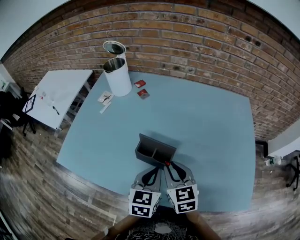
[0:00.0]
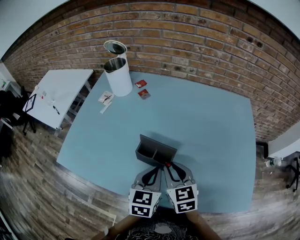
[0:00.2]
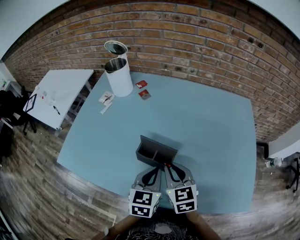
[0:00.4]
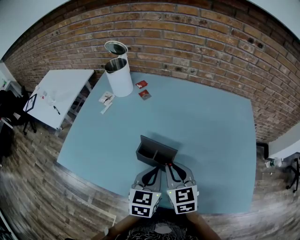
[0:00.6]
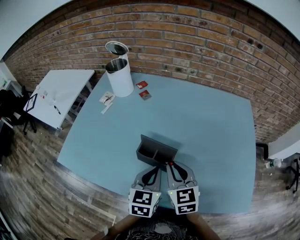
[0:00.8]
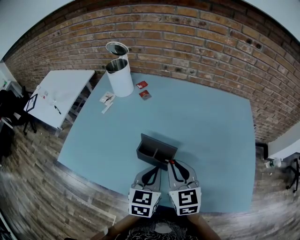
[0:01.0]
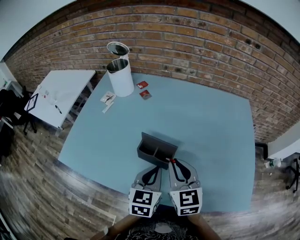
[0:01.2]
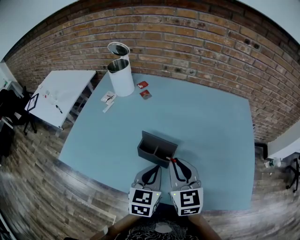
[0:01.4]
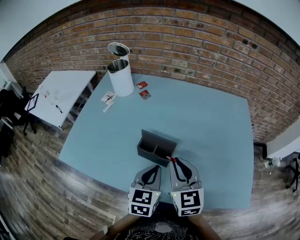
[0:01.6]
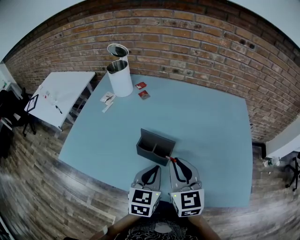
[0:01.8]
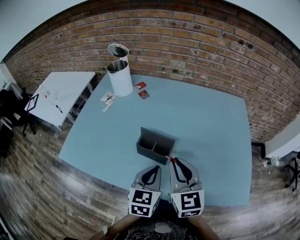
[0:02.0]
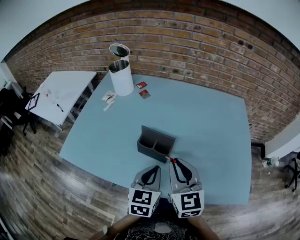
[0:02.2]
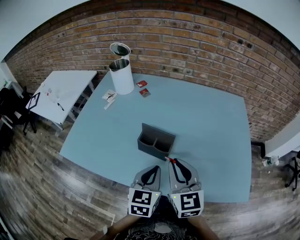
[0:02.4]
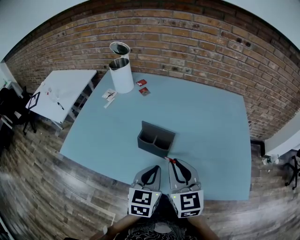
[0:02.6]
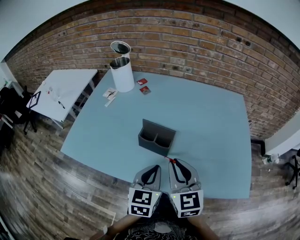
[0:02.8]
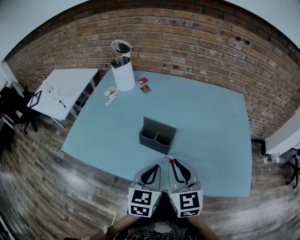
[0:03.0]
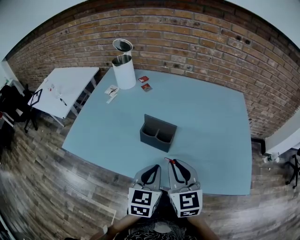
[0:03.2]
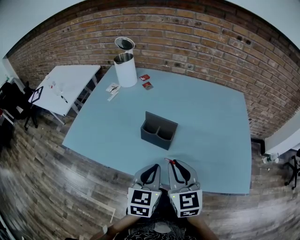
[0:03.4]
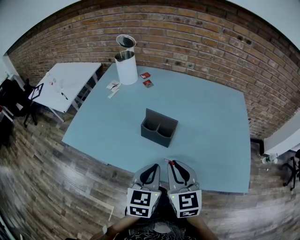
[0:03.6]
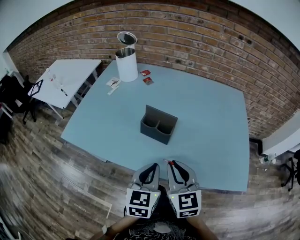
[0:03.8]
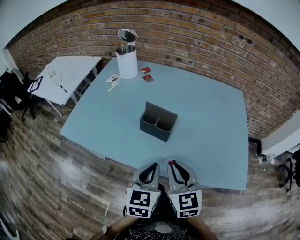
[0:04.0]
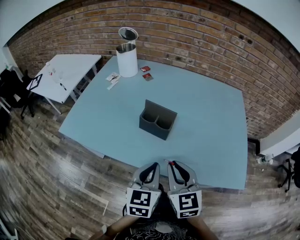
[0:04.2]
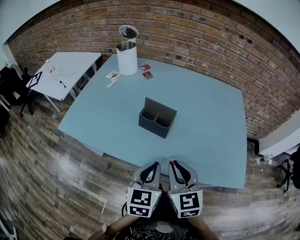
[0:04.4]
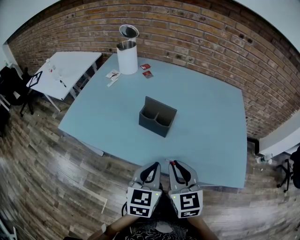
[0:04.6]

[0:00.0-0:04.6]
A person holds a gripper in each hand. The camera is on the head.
0:00.0 to 0:01.6: The right gripper shifts approximately 5 cm upward.
0:01.6 to 0:03.0: The two grippers go some 5 cm backward.
0:03.0 to 0:04.6: The grippers both shift backward by approximately 10 cm.

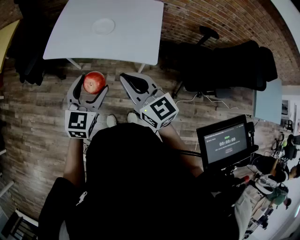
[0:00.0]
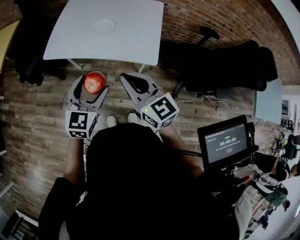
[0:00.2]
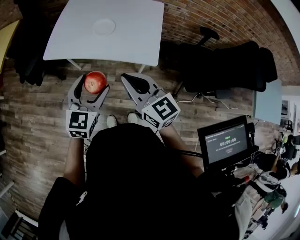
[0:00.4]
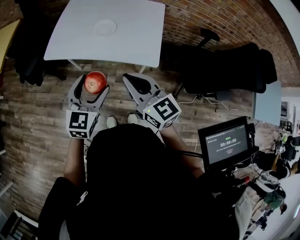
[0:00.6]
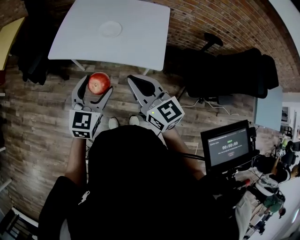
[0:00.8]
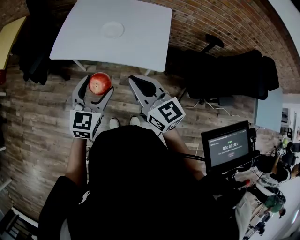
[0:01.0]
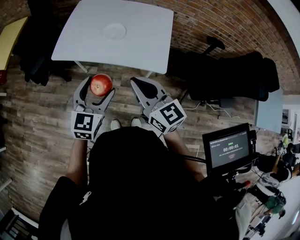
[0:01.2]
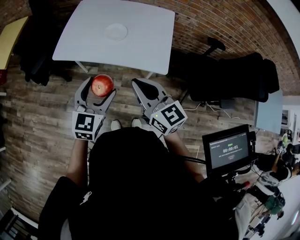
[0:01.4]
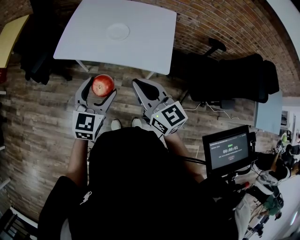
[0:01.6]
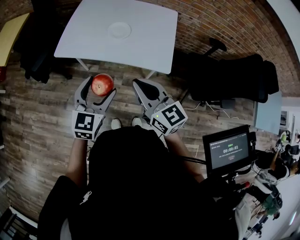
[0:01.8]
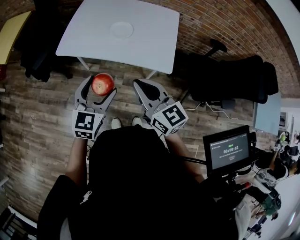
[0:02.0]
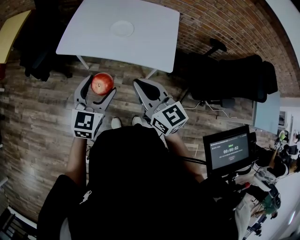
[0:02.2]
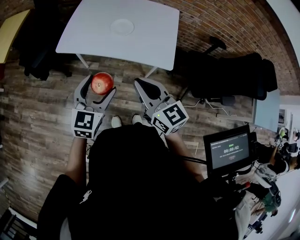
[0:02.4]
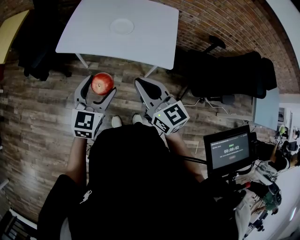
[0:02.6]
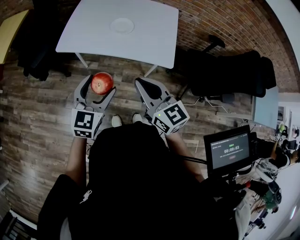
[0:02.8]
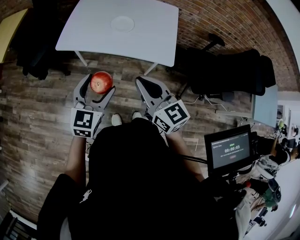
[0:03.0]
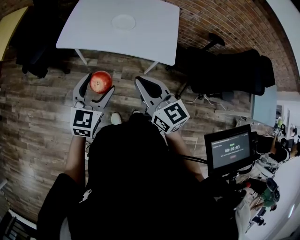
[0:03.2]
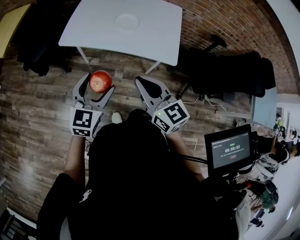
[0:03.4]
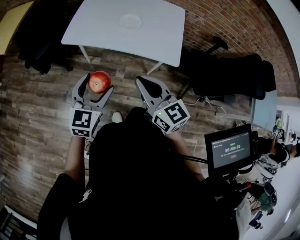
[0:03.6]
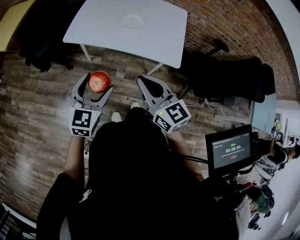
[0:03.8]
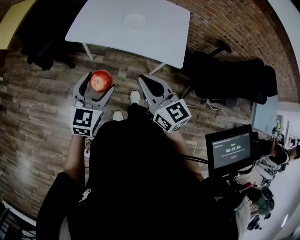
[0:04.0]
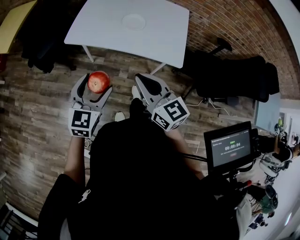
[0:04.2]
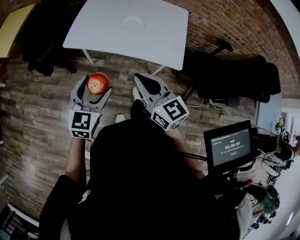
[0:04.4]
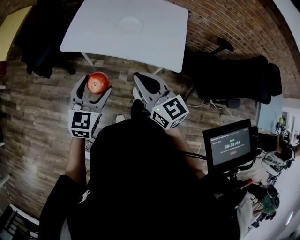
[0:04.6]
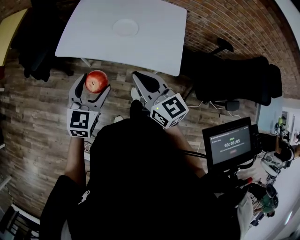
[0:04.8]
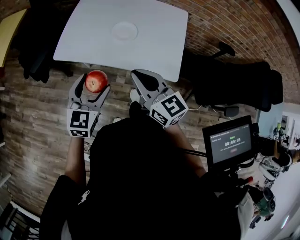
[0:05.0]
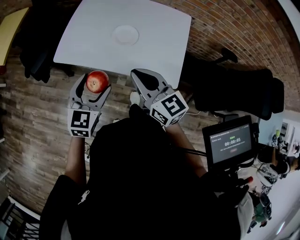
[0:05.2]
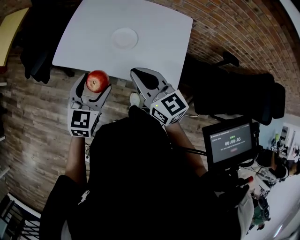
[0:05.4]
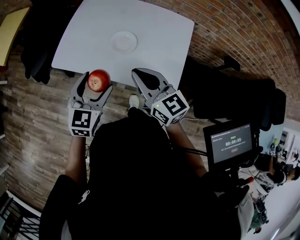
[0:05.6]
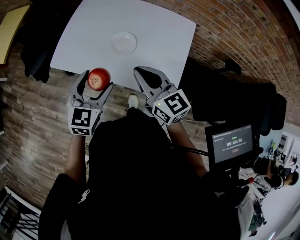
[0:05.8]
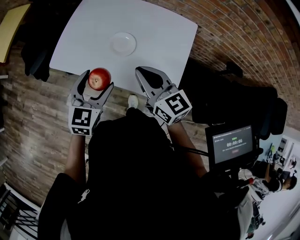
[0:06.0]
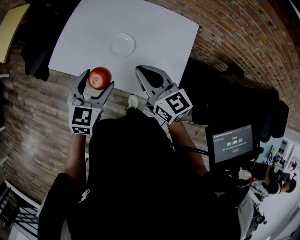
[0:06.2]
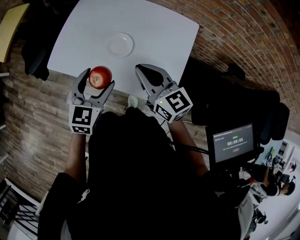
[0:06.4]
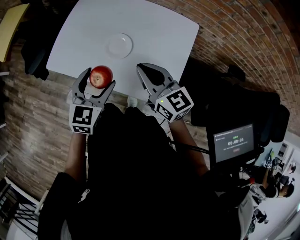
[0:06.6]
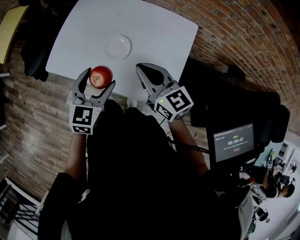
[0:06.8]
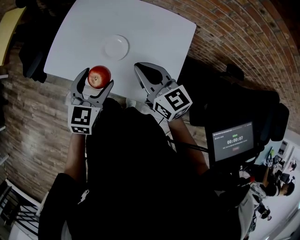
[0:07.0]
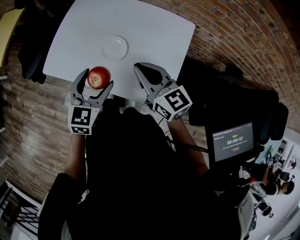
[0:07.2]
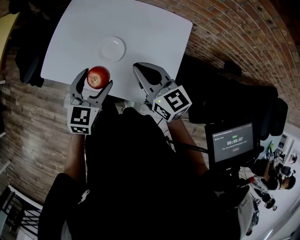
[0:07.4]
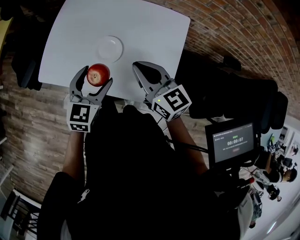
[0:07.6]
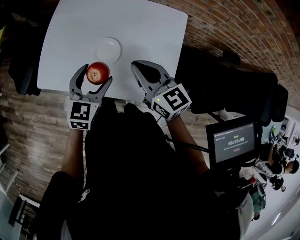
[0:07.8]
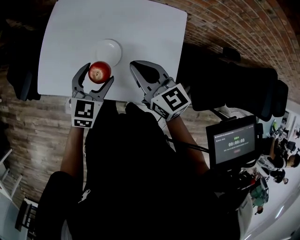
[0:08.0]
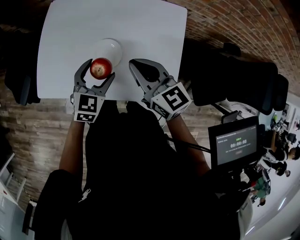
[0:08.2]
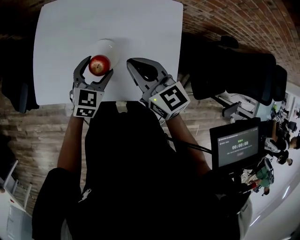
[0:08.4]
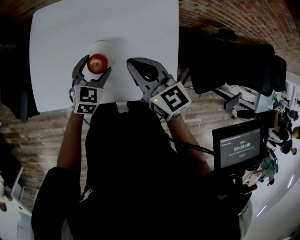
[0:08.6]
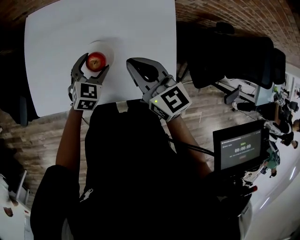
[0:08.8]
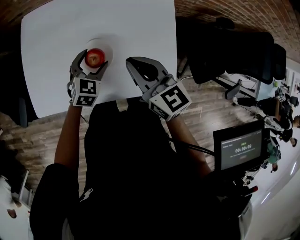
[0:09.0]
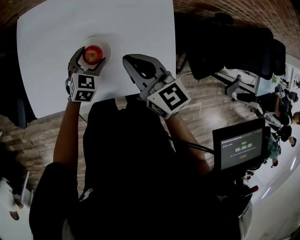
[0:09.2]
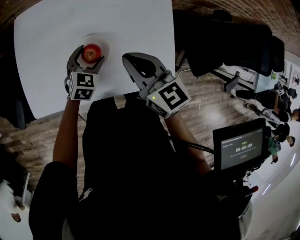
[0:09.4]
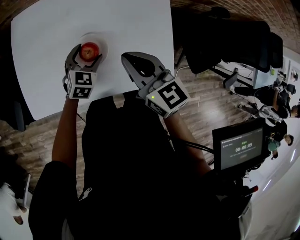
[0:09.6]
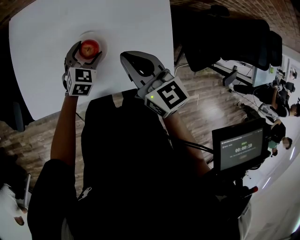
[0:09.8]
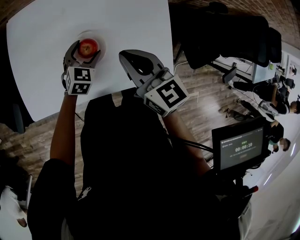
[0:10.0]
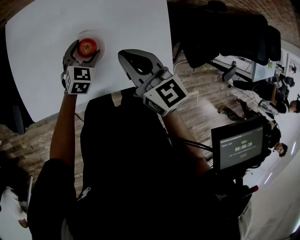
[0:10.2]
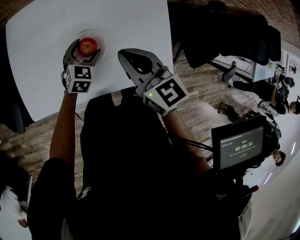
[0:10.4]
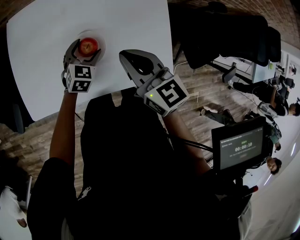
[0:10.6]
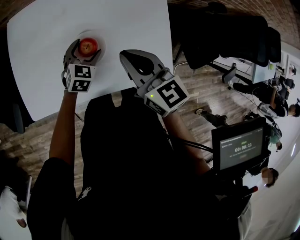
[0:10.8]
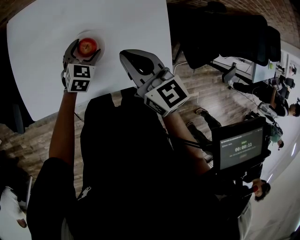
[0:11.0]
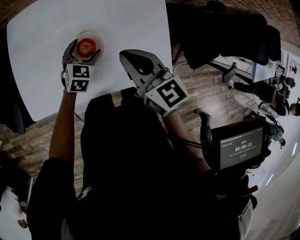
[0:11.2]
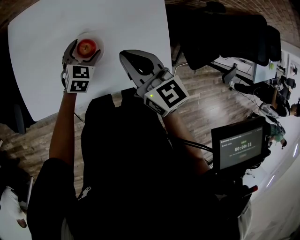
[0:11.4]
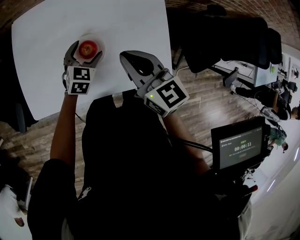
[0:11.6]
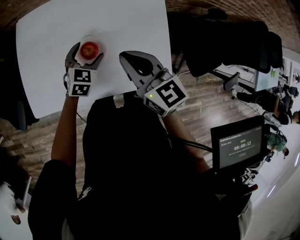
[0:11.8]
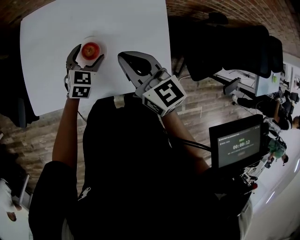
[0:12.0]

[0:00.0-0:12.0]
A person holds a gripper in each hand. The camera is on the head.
0:00.0 to 0:01.6: The left gripper travels to the left by some 5 cm.
0:01.6 to 0:03.0: The right gripper shifts by some 5 cm. The left gripper shifts about 5 cm to the left.
0:03.0 to 0:04.4: The grippers make only small movements.
0:04.4 to 0:06.0: The two grippers go approximately 25 cm forward and to the right.
0:06.0 to 0:07.6: Both grippers move forward and to the right, roughly 10 cm.
0:07.6 to 0:09.0: The left gripper shifts some 20 cm downward and forward, and rotates approximately 30 degrees, while the right gripper heads forward, covering some 5 cm, and rotates about 20 degrees.
0:09.0 to 0:10.4: The grippers make only small movements.
0:10.4 to 0:12.0: The left gripper goes roughly 5 cm upward.

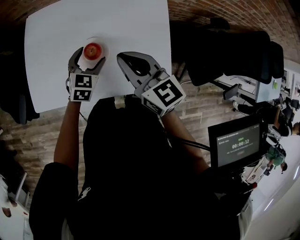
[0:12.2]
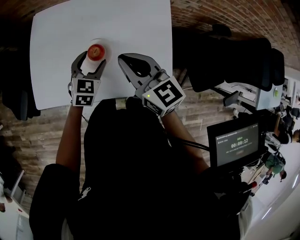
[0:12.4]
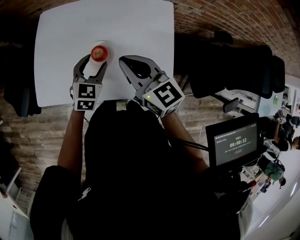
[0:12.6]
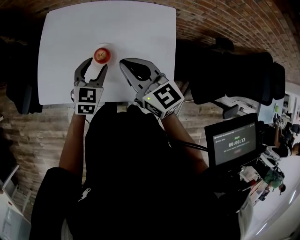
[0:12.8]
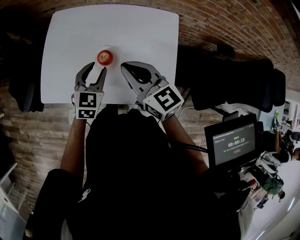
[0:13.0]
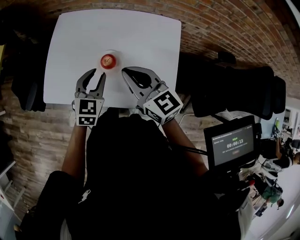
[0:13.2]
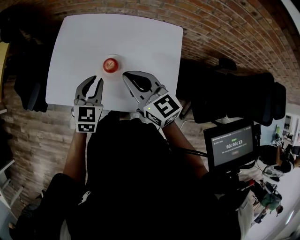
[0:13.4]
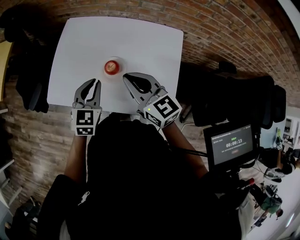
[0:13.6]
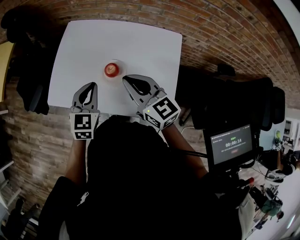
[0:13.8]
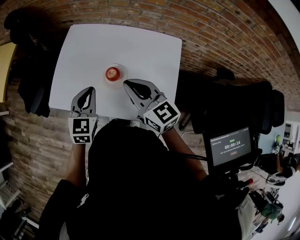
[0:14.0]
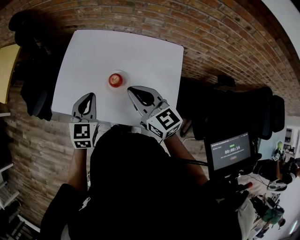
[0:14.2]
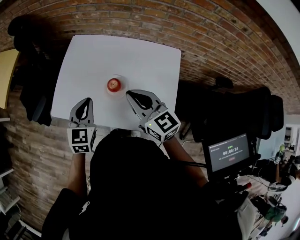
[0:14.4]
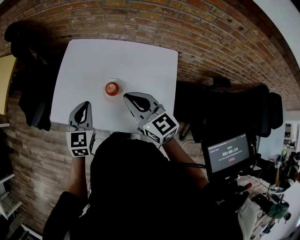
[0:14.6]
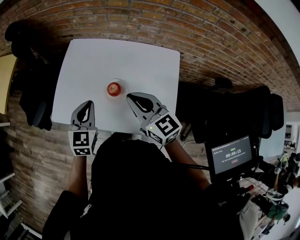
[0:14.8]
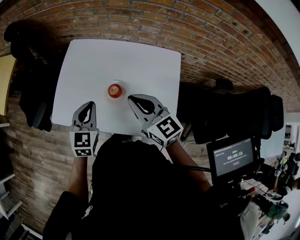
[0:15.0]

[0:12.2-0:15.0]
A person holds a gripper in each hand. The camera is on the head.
0:12.2 to 0:13.6: The left gripper is displaced upward, to the left and backward by about 15 cm, turns by roughly 20 degrees, and closes. Meanwhile the right gripper ends up some 5 cm from where it was.
0:13.6 to 0:15.0: The grippers move only a little.

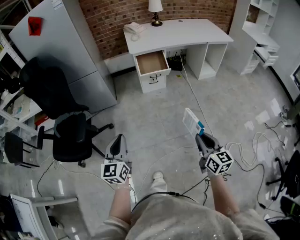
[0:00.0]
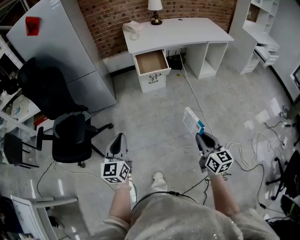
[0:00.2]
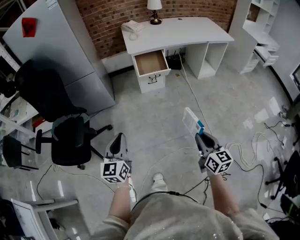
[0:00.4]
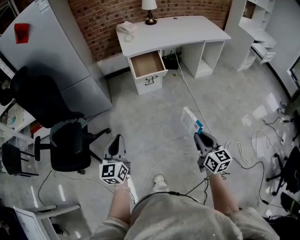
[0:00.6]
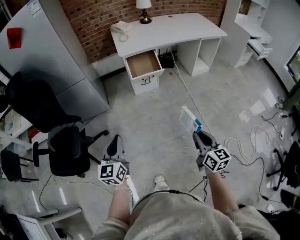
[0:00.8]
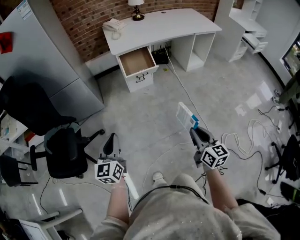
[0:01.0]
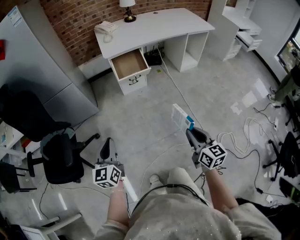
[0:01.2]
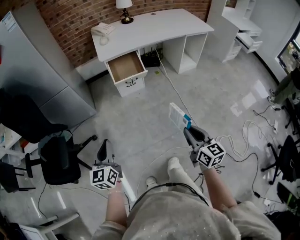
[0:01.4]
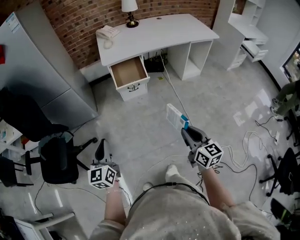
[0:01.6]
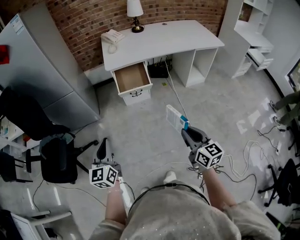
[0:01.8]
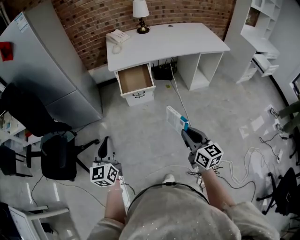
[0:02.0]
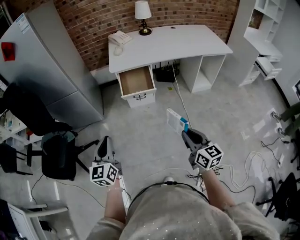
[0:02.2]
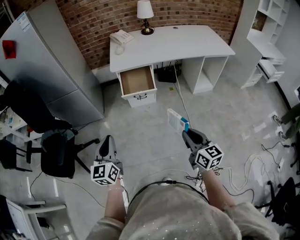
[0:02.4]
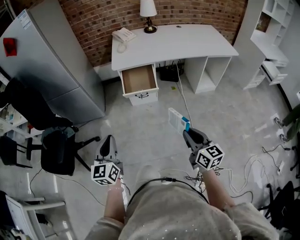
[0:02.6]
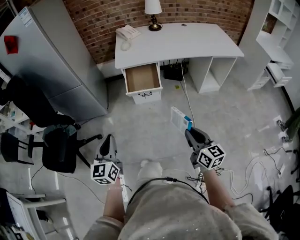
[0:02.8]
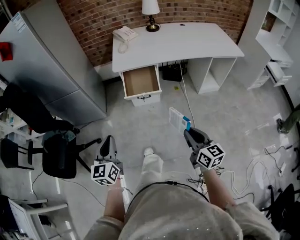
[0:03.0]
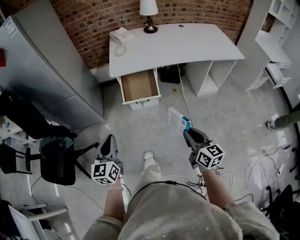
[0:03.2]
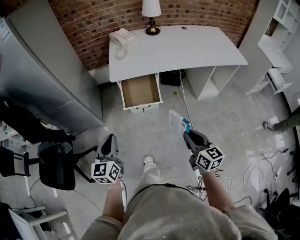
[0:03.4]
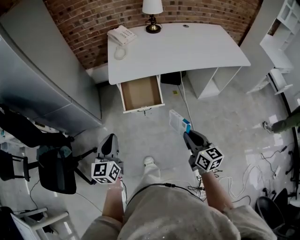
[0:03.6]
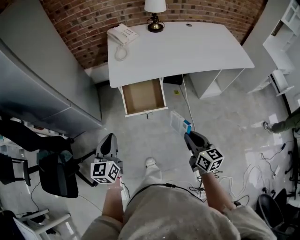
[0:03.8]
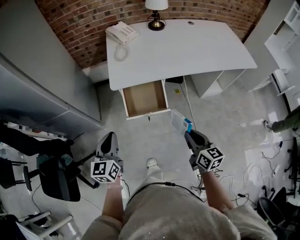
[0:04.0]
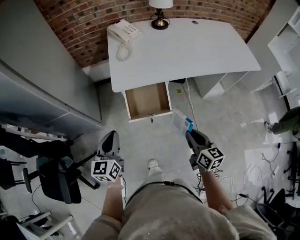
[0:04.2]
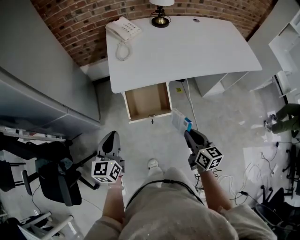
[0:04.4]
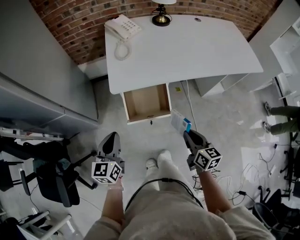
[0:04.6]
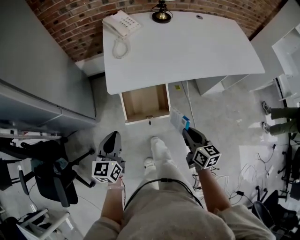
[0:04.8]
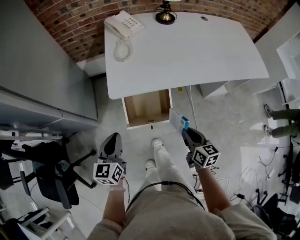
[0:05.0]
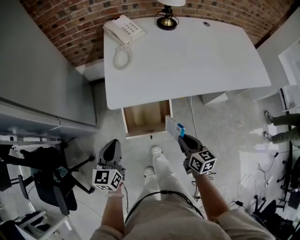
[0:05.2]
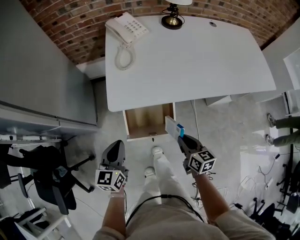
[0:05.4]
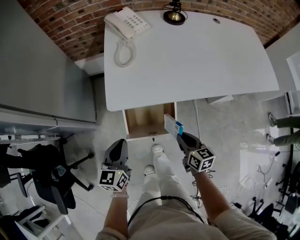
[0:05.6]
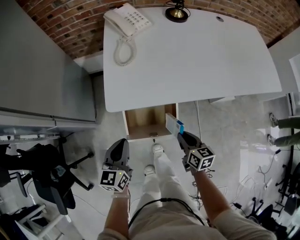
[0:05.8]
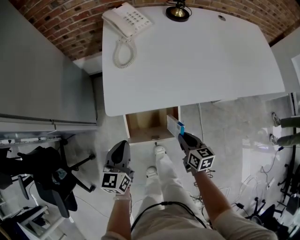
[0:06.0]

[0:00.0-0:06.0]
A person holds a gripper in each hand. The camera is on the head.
0:00.0 to 0:01.6: Both grippers travel together forward, some 15 cm.
0:01.6 to 0:03.0: Both grippers travel together forward and to the right, roughly 15 cm.
0:03.0 to 0:04.4: The grippers both shift forward by about 30 cm.
0:04.4 to 0:06.0: The right gripper heads downward and forward, covering some 20 cm; the left gripper moves forward, downward and to the right, about 15 cm.
